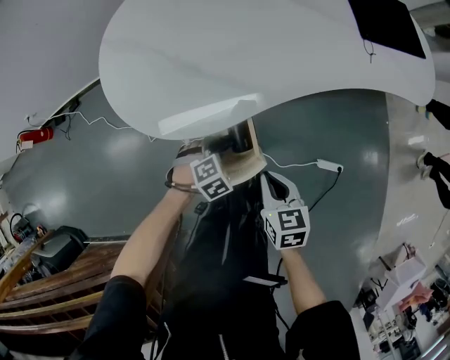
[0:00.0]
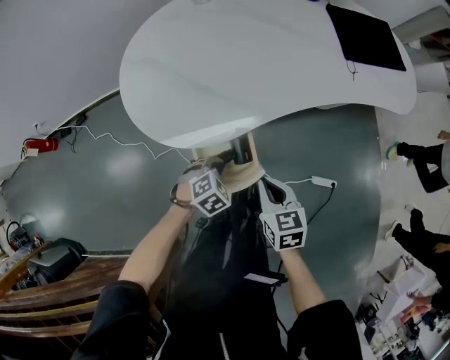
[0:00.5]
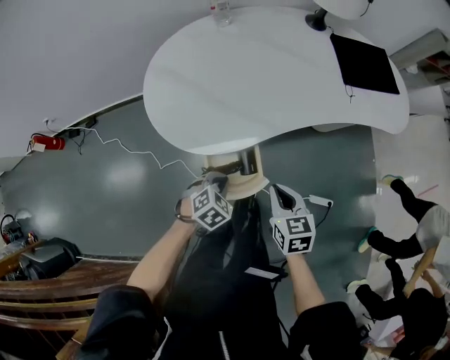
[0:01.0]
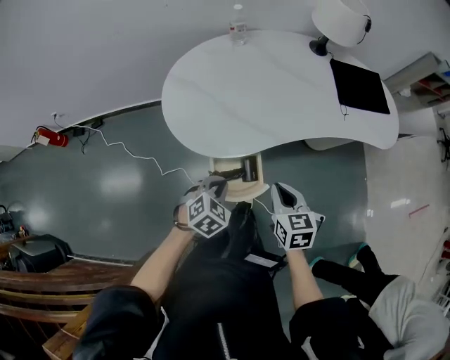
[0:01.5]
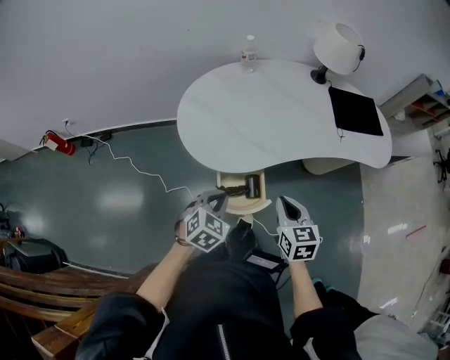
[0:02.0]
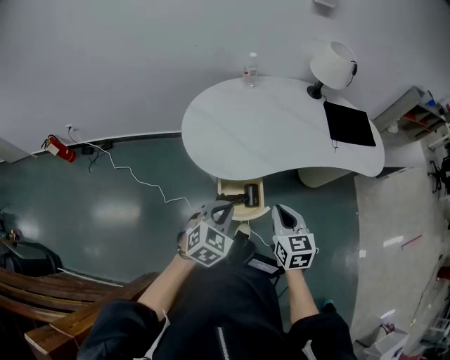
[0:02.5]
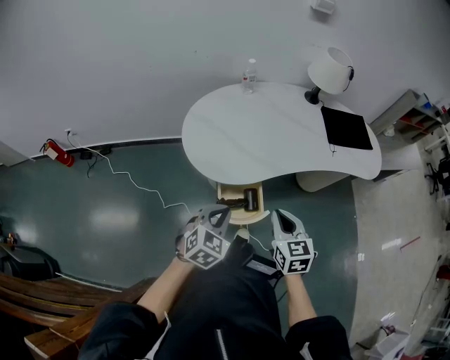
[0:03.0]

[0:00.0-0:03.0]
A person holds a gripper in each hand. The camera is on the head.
0:00.0 to 0:01.5: Both grippers travel together upward, approximately 20 cm. The left gripper turns by roughly 30 degrees, and closes up.
0:01.5 to 0:03.0: The left gripper shifts approximately 15 cm upward and backward; the right gripper travels upward by about 10 cm.

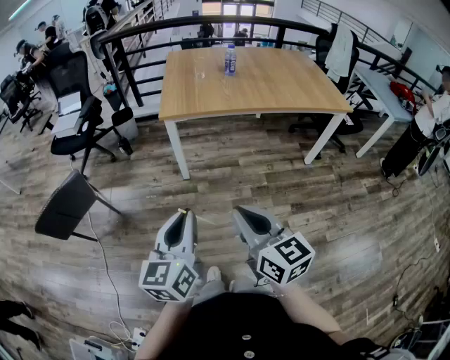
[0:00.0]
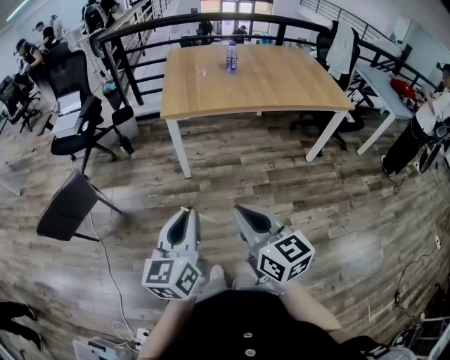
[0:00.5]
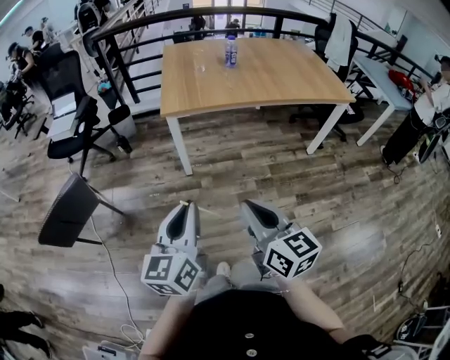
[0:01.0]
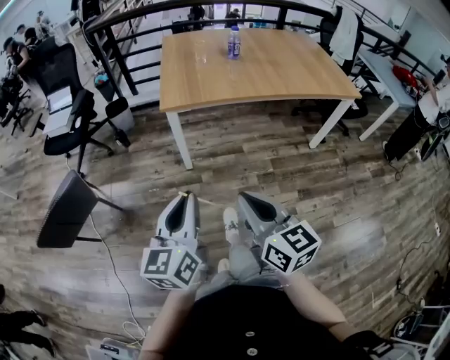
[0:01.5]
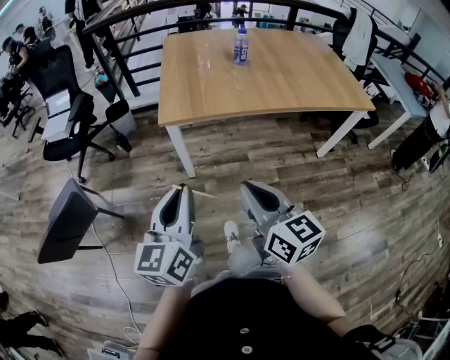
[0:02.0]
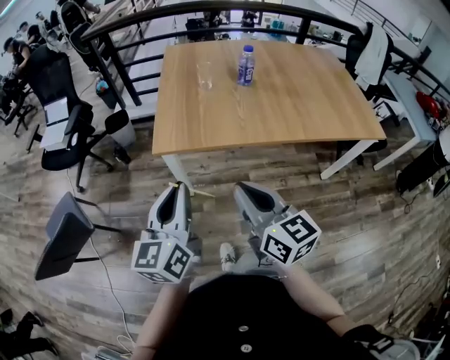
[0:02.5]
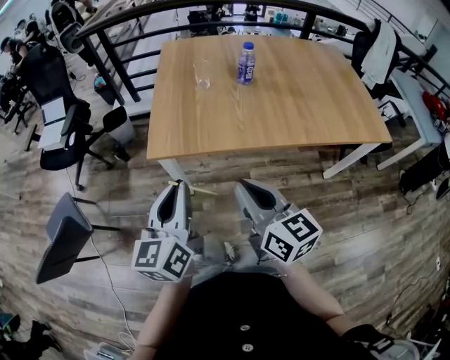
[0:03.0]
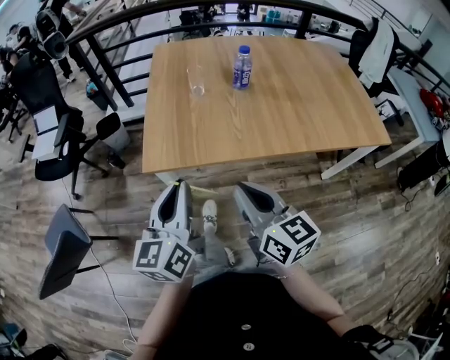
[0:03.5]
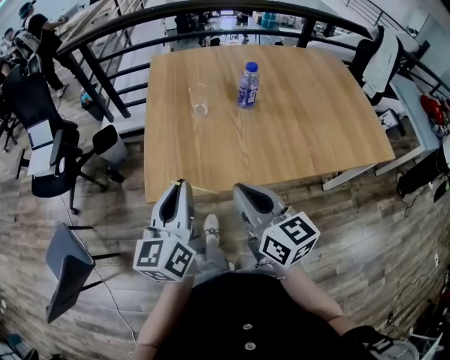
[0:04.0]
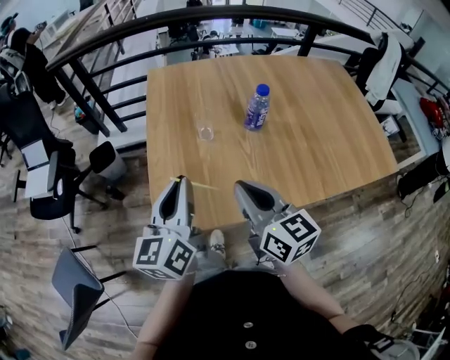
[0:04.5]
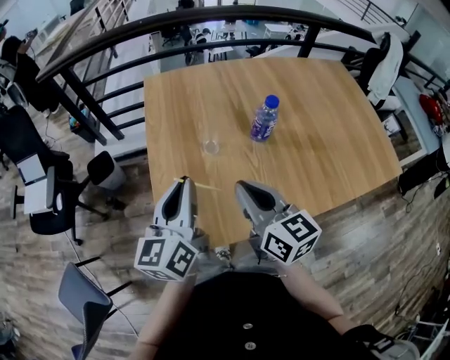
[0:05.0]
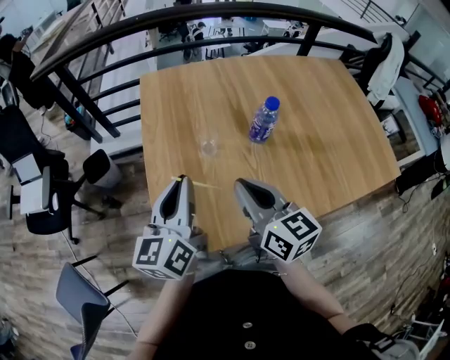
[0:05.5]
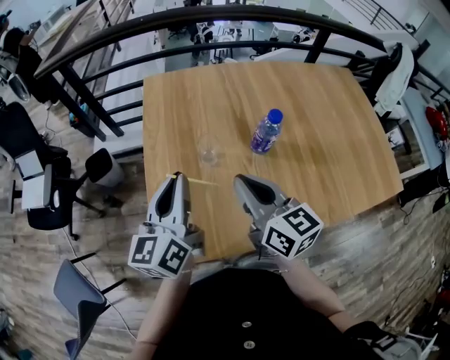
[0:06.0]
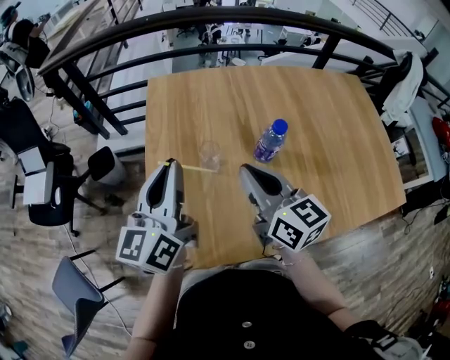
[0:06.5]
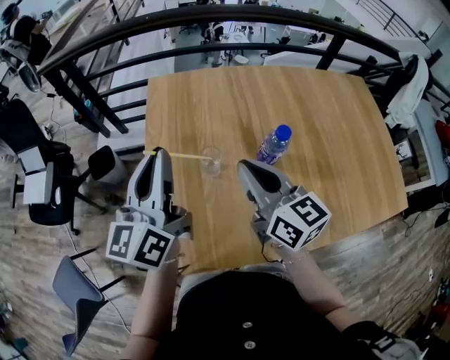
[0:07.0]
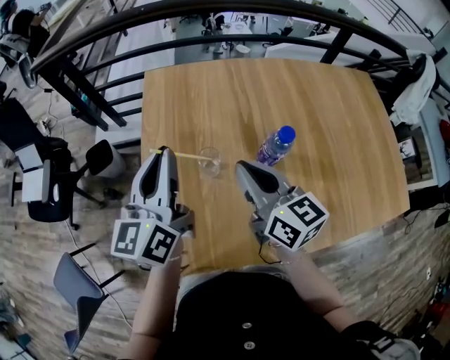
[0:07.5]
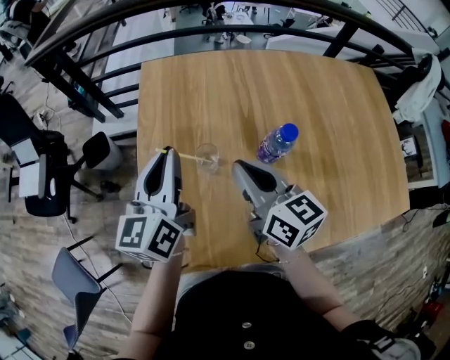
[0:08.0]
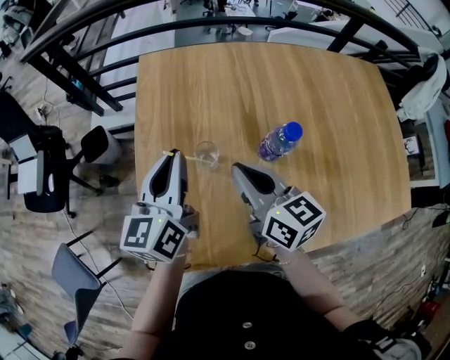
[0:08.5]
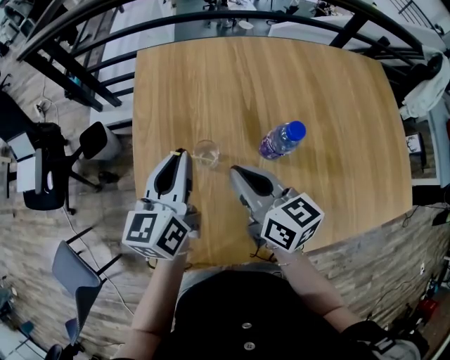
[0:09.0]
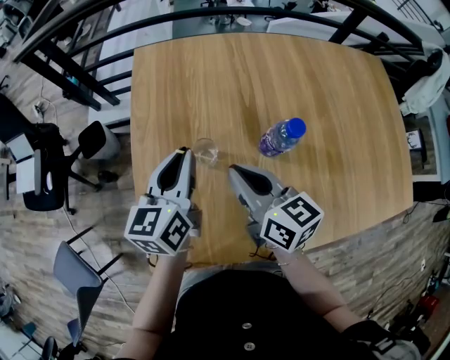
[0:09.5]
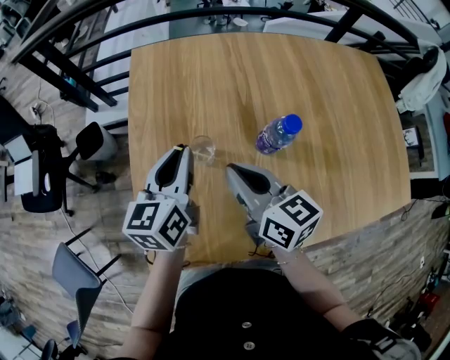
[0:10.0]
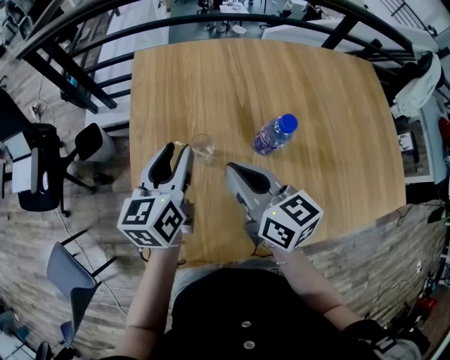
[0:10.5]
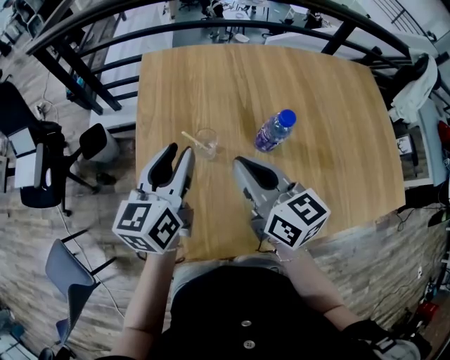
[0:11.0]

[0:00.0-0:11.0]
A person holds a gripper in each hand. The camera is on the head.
0:00.0 to 0:02.0: The grippers both shift forward by approximately 25 cm.
0:02.0 to 0:03.5: The two grippers go some 25 cm forward.
0:03.5 to 0:05.5: Both grippers move forward, about 35 cm.
0:05.5 to 0:07.5: Both grippers travel together forward, some 15 cm.
0:07.5 to 0:09.0: The two grippers go roughly 10 cm downward.
0:09.0 to 0:11.0: The right gripper heads upward, covering approximately 5 cm. The left gripper moves some 5 cm, and opens.

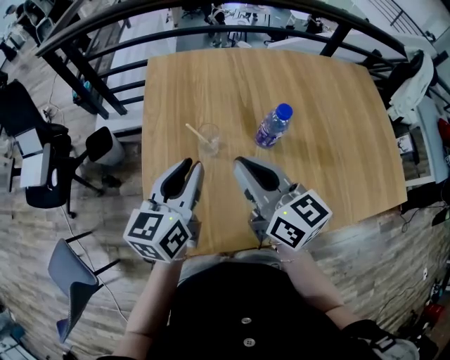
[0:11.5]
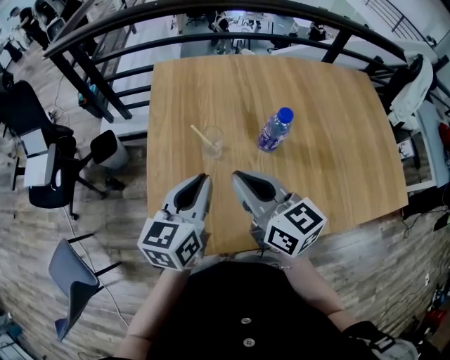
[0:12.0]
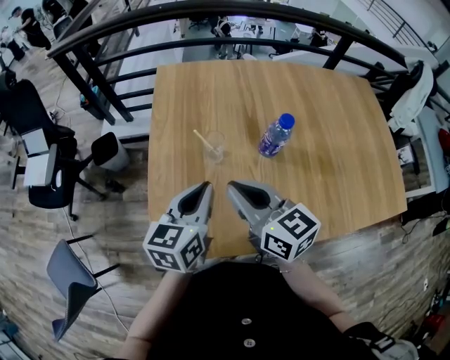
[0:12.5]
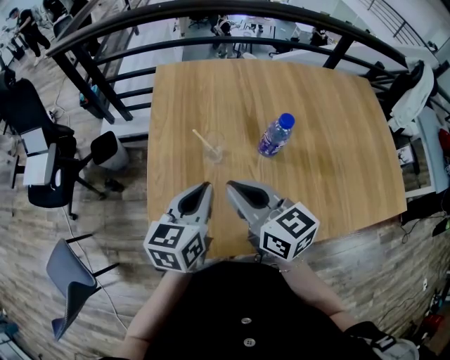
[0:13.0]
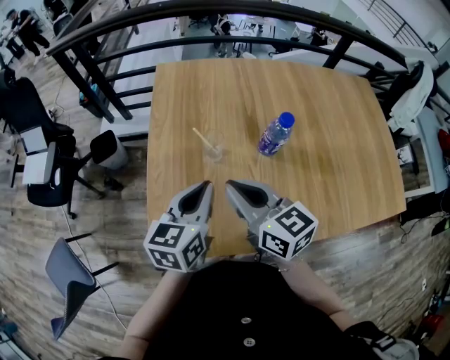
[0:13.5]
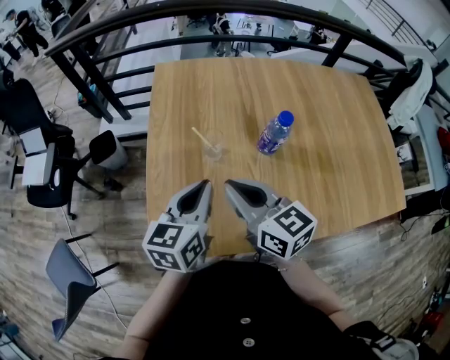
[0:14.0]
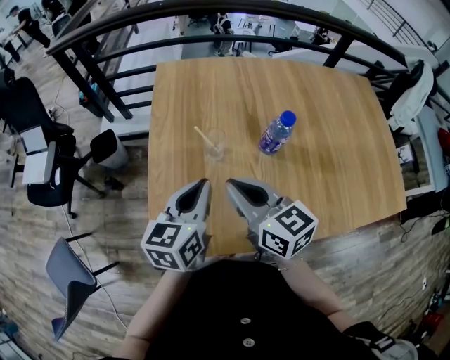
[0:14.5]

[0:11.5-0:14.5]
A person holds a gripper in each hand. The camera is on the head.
0:11.5 to 0:13.0: The left gripper moves approximately 5 cm, while the right gripper moves about 5 cm.
0:13.0 to 0:14.5: The two grippers keep their place.

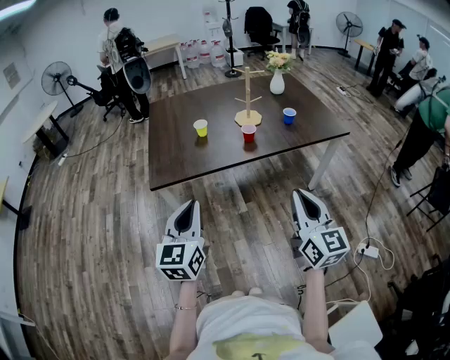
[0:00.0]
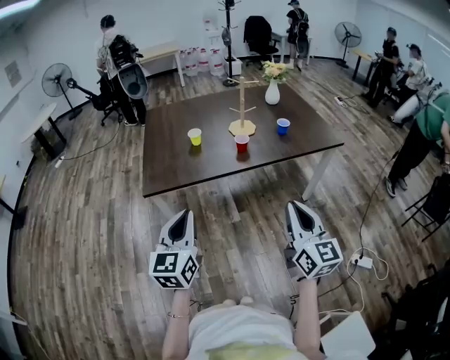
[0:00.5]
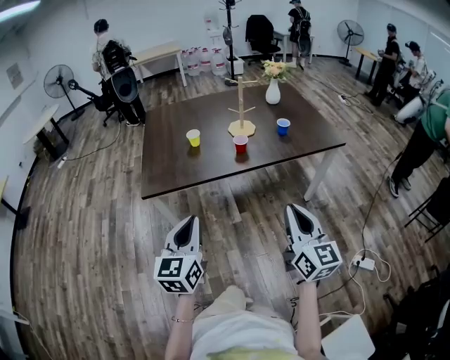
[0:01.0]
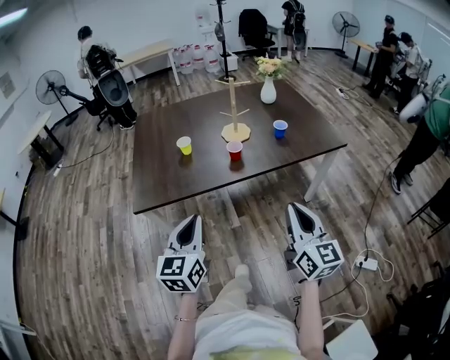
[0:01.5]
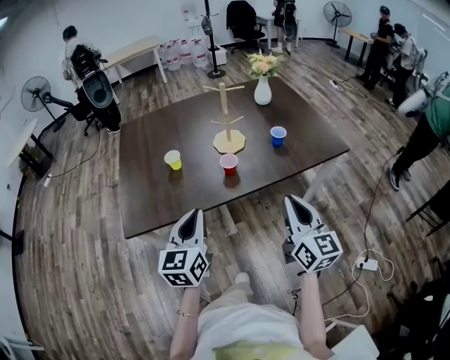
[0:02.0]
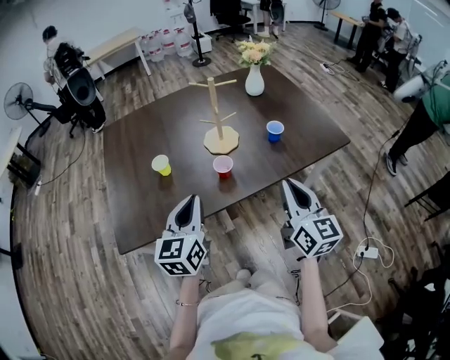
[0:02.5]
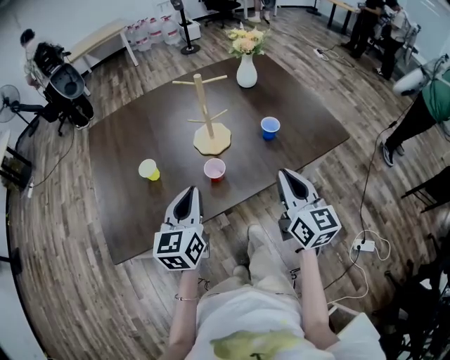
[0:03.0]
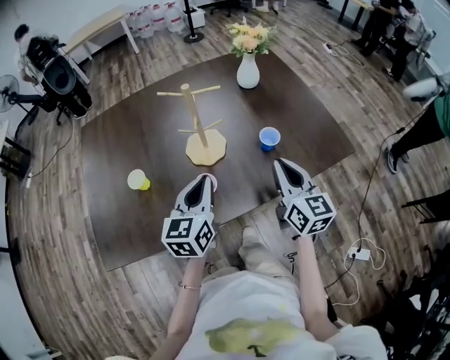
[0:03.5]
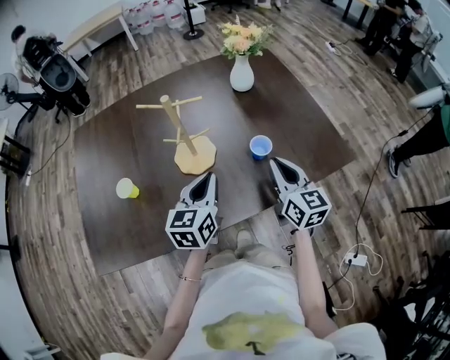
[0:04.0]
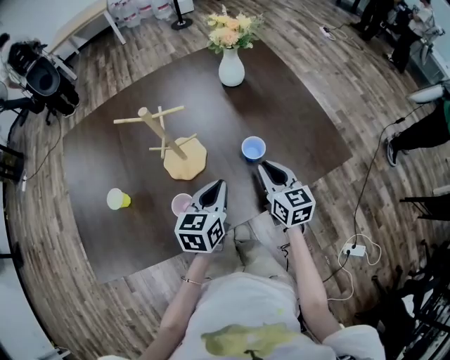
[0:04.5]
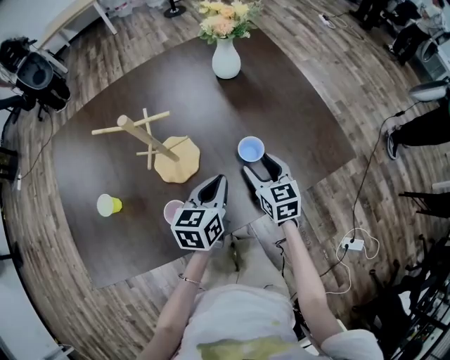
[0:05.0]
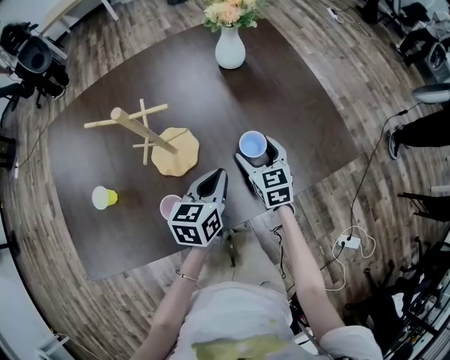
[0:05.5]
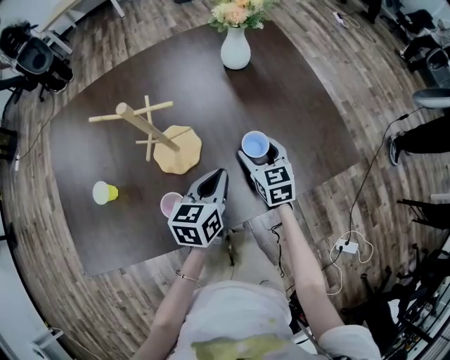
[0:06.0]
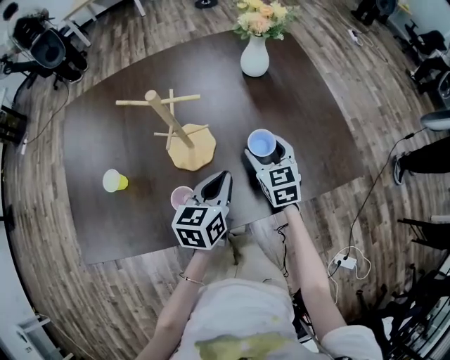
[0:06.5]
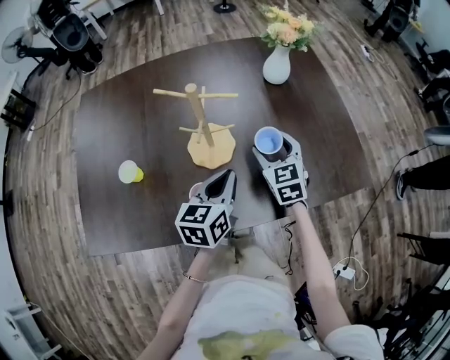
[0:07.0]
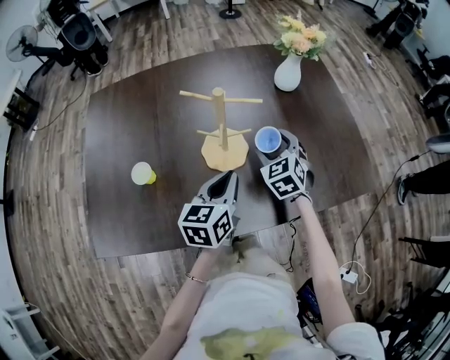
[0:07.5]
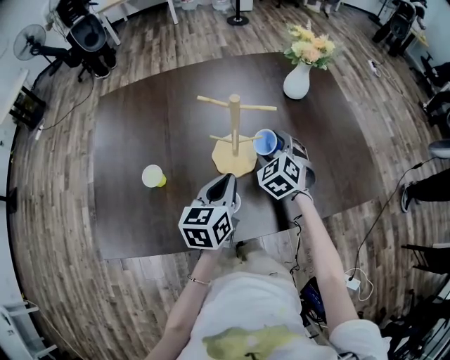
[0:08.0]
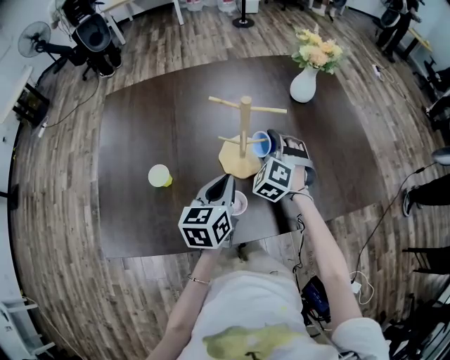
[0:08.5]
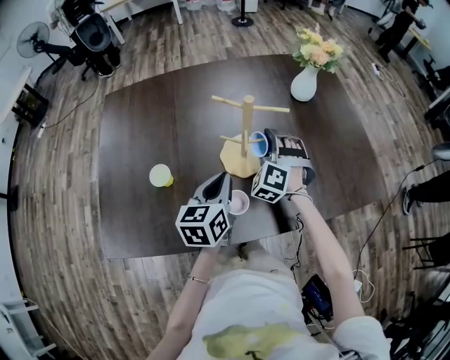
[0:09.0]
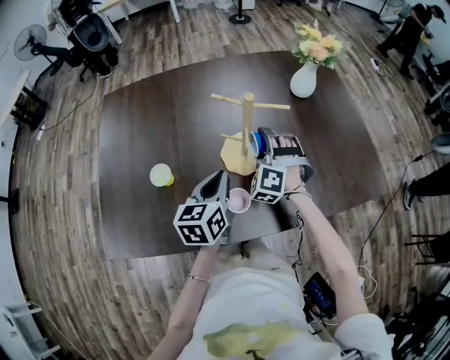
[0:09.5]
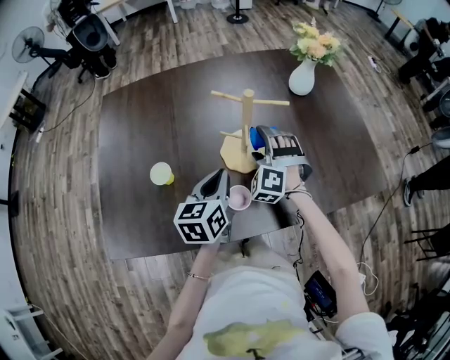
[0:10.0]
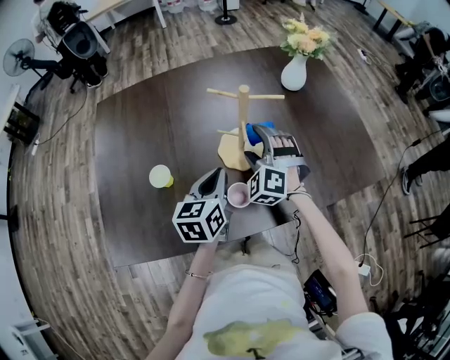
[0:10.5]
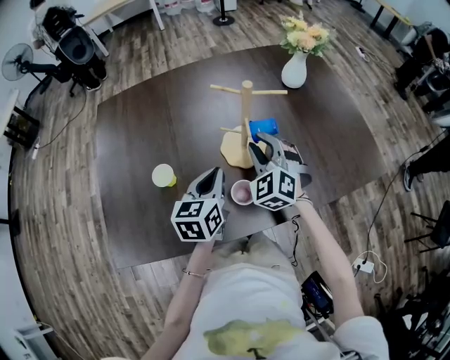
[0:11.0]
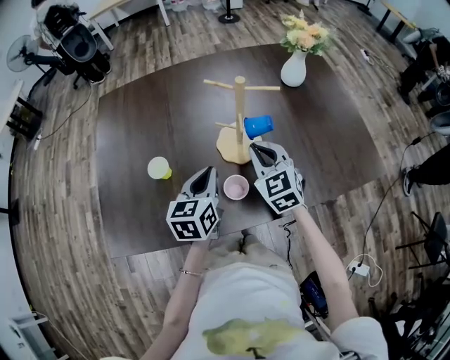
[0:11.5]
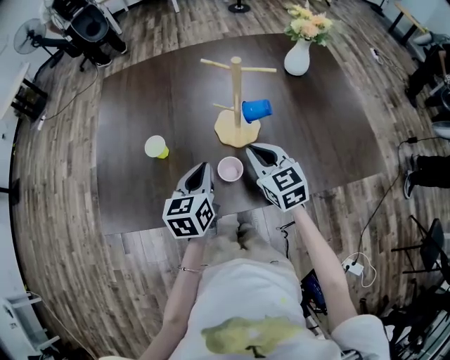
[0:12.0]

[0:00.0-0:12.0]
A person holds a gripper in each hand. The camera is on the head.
0:00.0 to 0:02.0: The right gripper moves forward, roughly 20 cm. The left gripper shifts roughly 25 cm forward and to the right.
0:02.0 to 0:04.0: The right gripper moves forward, about 30 cm. The left gripper shifts some 35 cm forward and to the right.
0:04.0 to 0:06.0: The right gripper heads downward and forward, covering approximately 15 cm, changes its angle by approximately 20 degrees, and opens. The left gripper shifts approximately 10 cm downward and to the right.
0:06.0 to 0:08.0: The left gripper goes roughly 15 cm to the left. The right gripper is displaced to the left and upward by approximately 15 cm, and rolls counterclockwise, seen from behind, by about 40 degrees.
0:08.0 to 0:10.0: The right gripper travels to the left by some 5 cm, and turns by about 30 degrees. The left gripper changes place by roughly 5 cm.
0:10.0 to 0:12.0: The right gripper shifts approximately 10 cm backward, rolls clockwise, seen from behind, by approximately 60 degrees, and closes its fingers; the left gripper goes roughly 5 cm backward.
